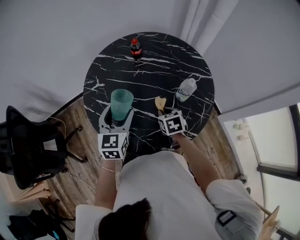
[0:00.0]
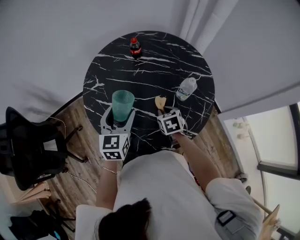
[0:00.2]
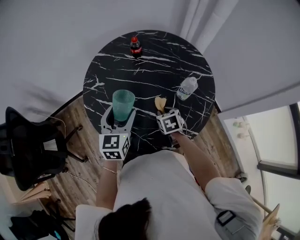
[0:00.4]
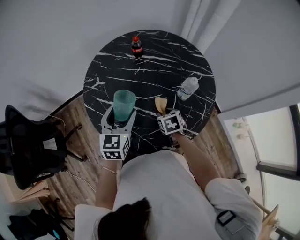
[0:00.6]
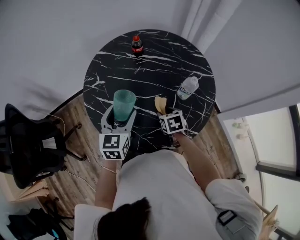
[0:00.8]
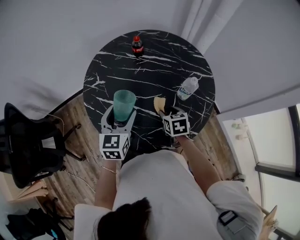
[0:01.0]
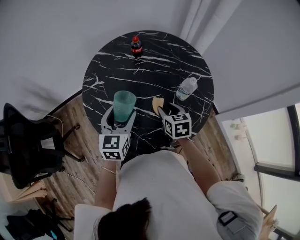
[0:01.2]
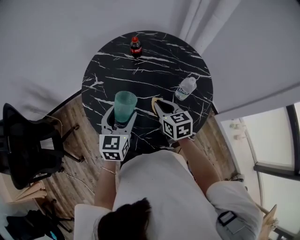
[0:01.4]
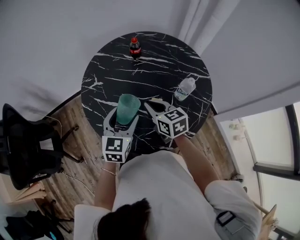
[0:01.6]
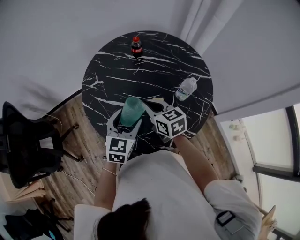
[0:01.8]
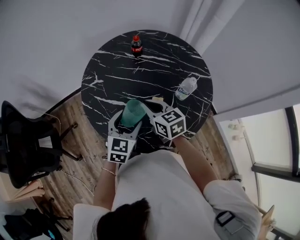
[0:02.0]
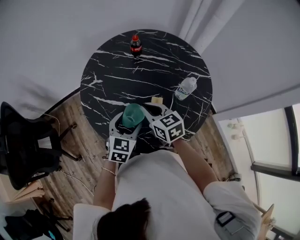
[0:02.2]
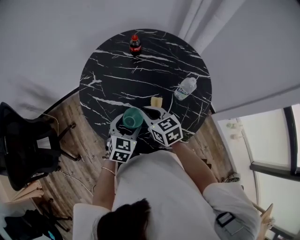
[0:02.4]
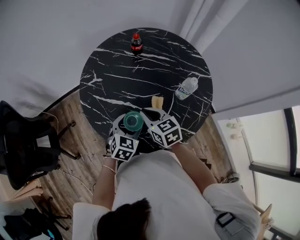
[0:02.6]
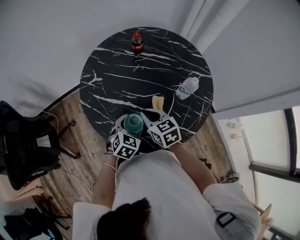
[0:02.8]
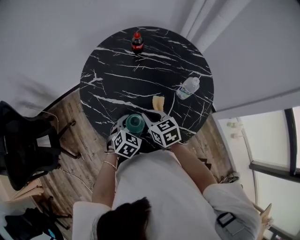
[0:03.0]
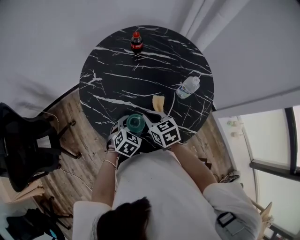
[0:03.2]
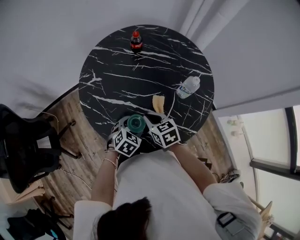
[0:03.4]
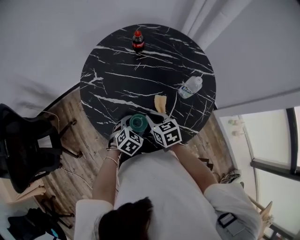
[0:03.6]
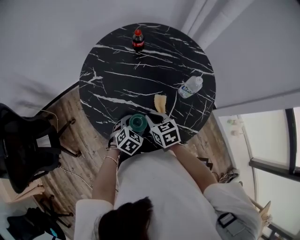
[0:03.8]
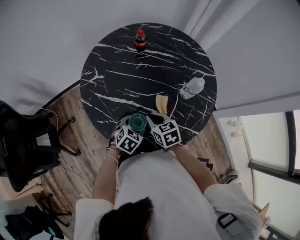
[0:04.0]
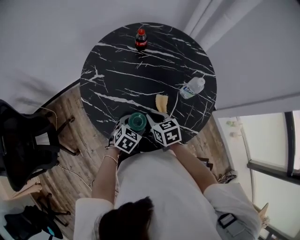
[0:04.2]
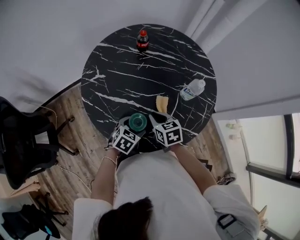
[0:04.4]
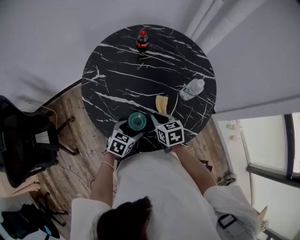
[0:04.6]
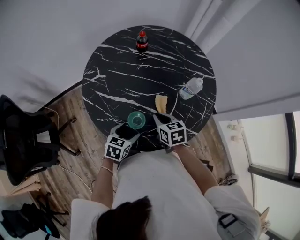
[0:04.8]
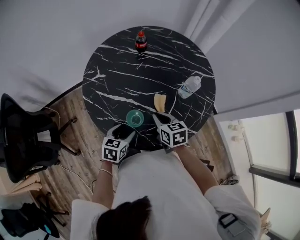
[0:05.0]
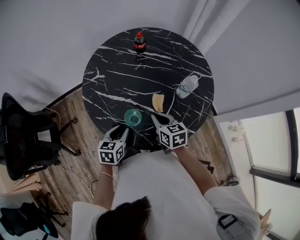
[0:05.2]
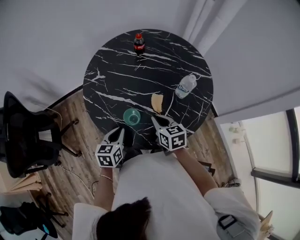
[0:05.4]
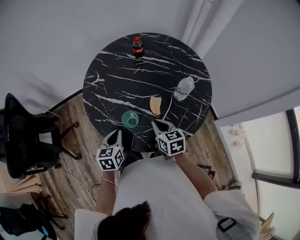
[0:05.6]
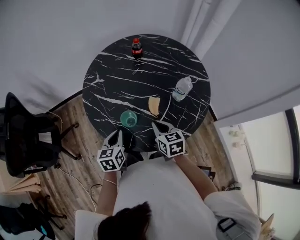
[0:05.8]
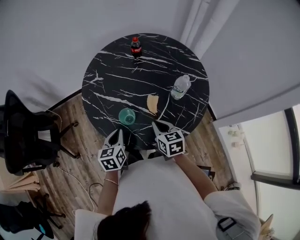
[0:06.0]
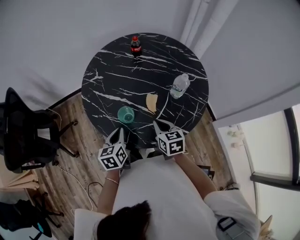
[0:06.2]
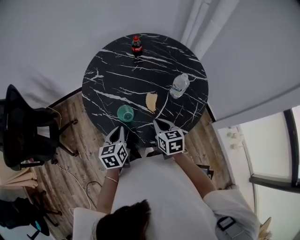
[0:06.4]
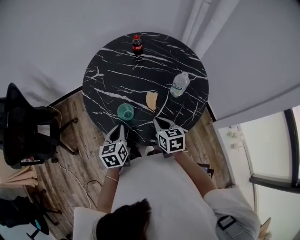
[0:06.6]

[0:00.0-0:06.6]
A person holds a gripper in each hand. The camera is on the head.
0:00.0 to 0:01.6: The right gripper goes roughly 10 cm upward and to the left, changes its angle by about 30 degrees, and opens, then closes once more.
0:01.6 to 0:03.2: The right gripper travels downward by roughly 5 cm. Meanwhile the left gripper moves downward, some 15 cm, and points its fingers about 30 degrees further downward.
0:03.2 to 0:05.0: The left gripper shifts by about 5 cm, and swivels approximately 30 degrees.
0:05.0 to 0:06.6: The right gripper goes about 5 cm backward; the left gripper is displaced upward by some 5 cm, rotates roughly 30 degrees, and closes up.

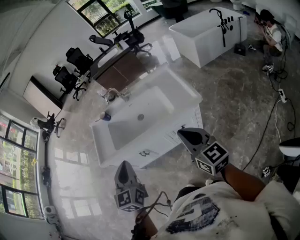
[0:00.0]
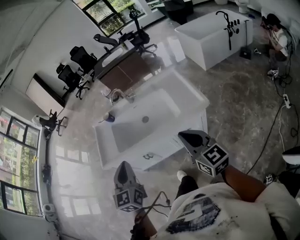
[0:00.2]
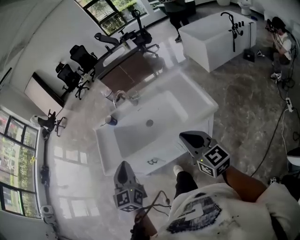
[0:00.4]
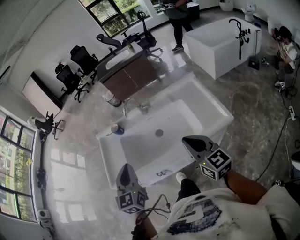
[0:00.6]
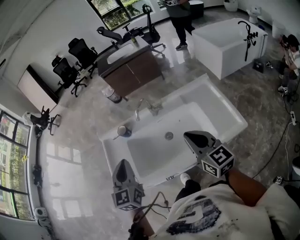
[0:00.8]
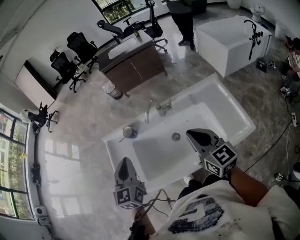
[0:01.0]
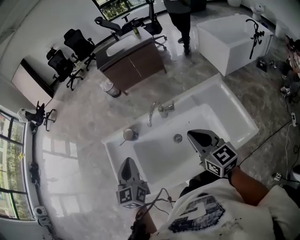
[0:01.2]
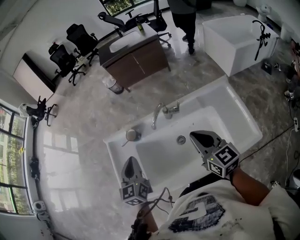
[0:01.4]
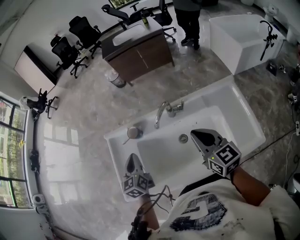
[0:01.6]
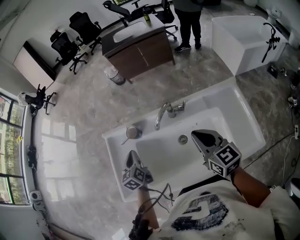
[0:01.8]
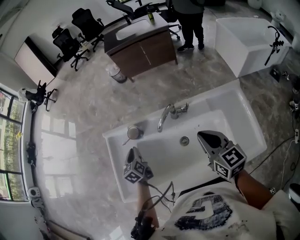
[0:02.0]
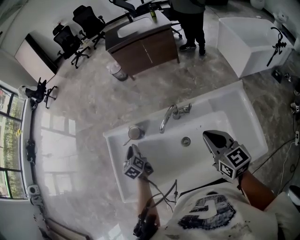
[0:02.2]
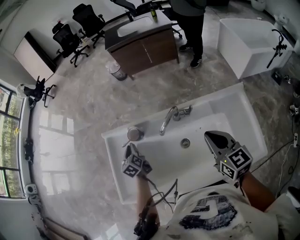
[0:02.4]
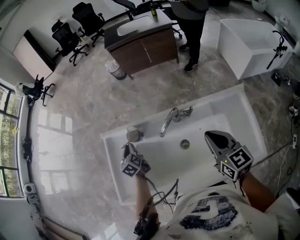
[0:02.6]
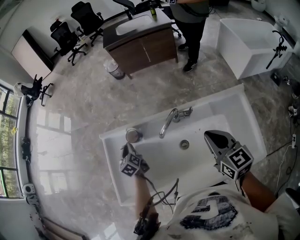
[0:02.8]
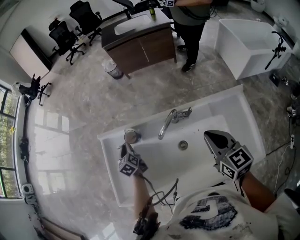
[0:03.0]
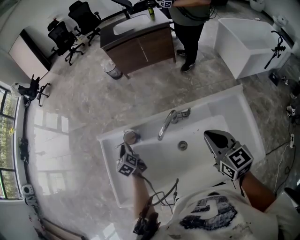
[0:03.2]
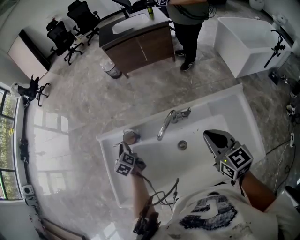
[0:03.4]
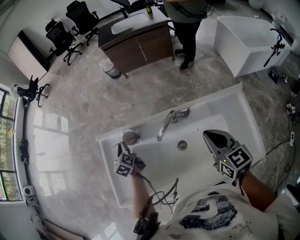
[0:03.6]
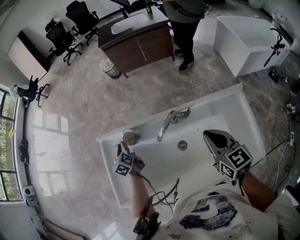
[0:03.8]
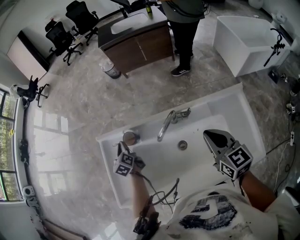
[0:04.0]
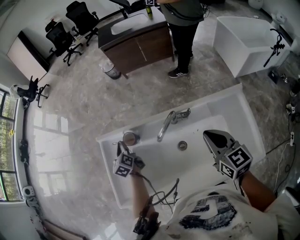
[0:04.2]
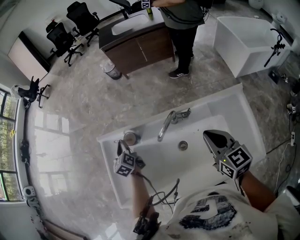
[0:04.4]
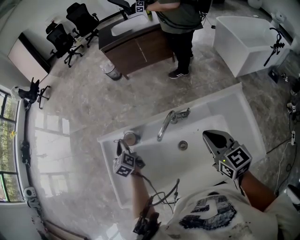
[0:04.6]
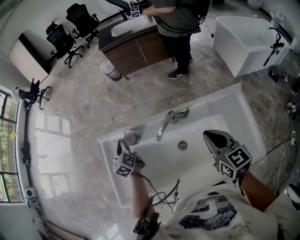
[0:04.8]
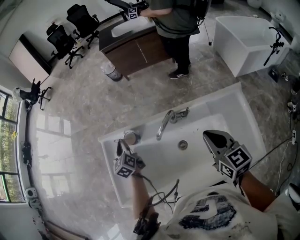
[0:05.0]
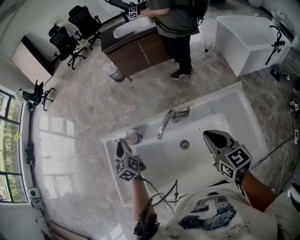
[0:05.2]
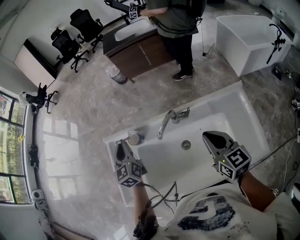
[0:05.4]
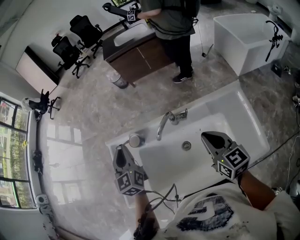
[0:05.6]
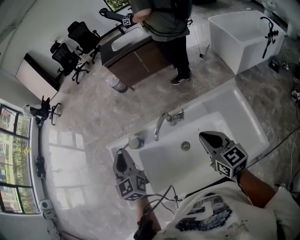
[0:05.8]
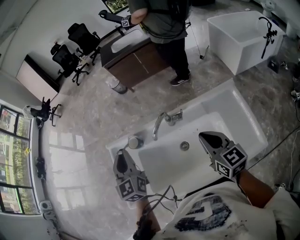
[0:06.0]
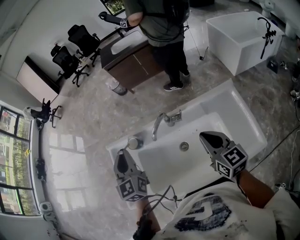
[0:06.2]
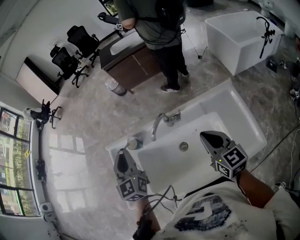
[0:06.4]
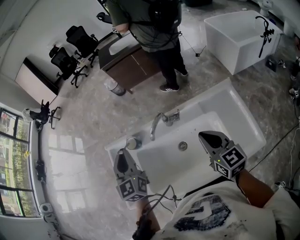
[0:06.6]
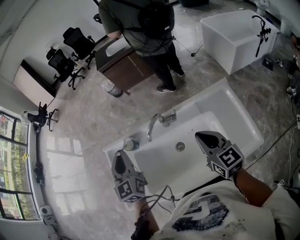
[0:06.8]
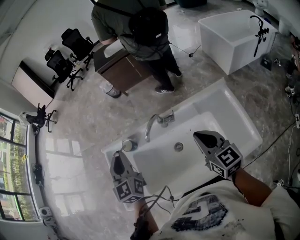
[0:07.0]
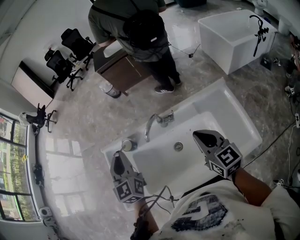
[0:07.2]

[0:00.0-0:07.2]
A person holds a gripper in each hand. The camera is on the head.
0:00.0 to 0:01.4: Both grippers are carried forward, about 50 cm.
0:01.4 to 0:02.8: The right gripper is displaced forward by about 5 cm. Meanwhile the left gripper travels downward and forward by roughly 25 cm, swivels approximately 30 degrees, and opens up.
0:02.8 to 0:04.4: The left gripper ends up some 5 cm from where it was, and closes.
0:04.4 to 0:05.8: The left gripper goes approximately 25 cm upward and backward, and rotates approximately 30 degrees.
0:05.8 to 0:07.2: There are only small adjustments of the grippers.

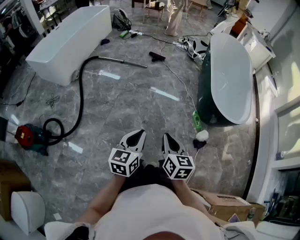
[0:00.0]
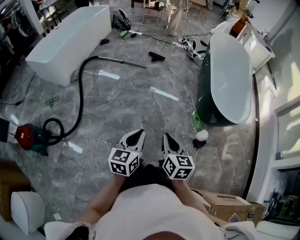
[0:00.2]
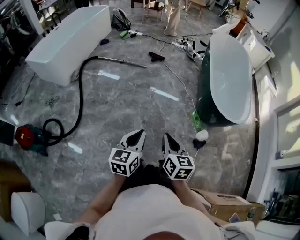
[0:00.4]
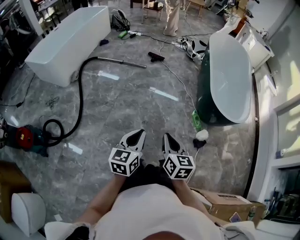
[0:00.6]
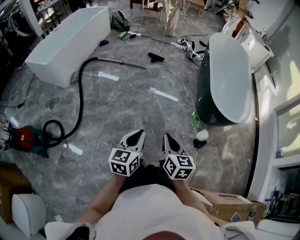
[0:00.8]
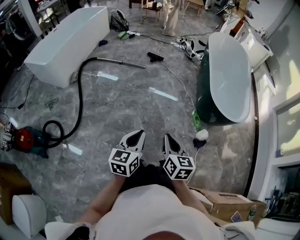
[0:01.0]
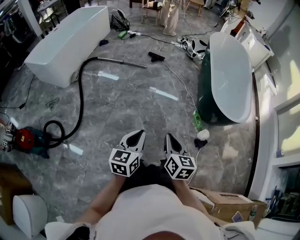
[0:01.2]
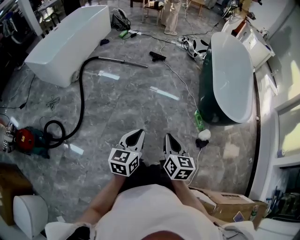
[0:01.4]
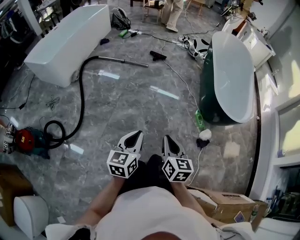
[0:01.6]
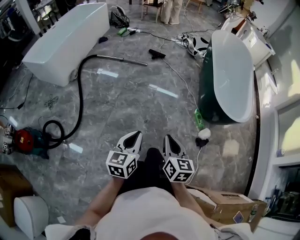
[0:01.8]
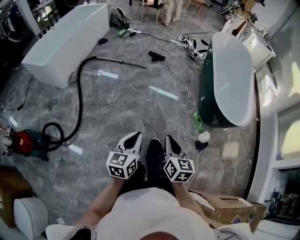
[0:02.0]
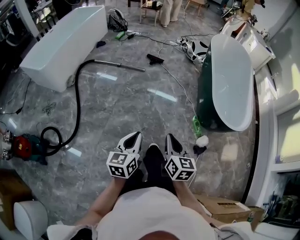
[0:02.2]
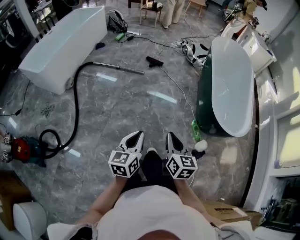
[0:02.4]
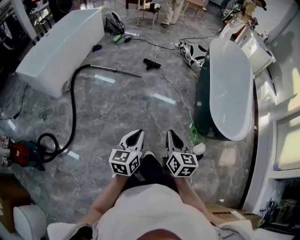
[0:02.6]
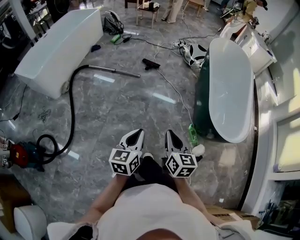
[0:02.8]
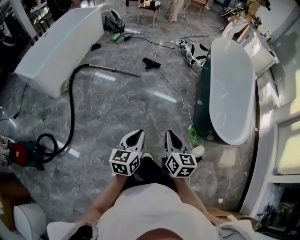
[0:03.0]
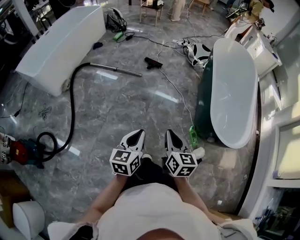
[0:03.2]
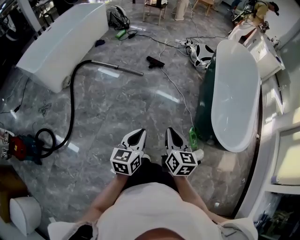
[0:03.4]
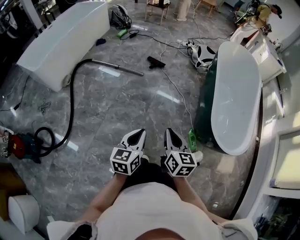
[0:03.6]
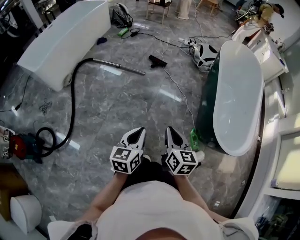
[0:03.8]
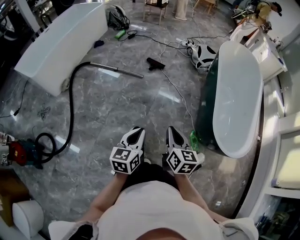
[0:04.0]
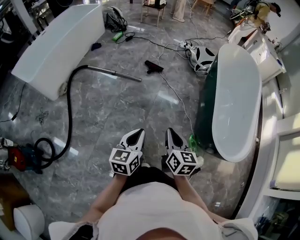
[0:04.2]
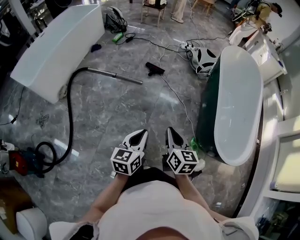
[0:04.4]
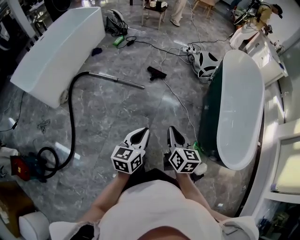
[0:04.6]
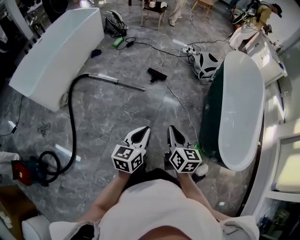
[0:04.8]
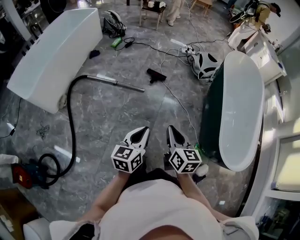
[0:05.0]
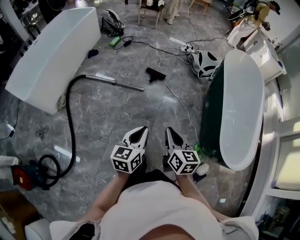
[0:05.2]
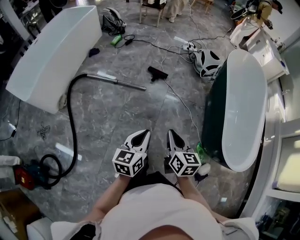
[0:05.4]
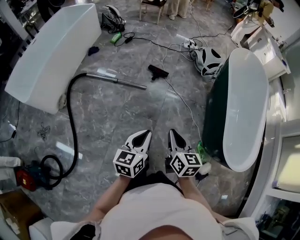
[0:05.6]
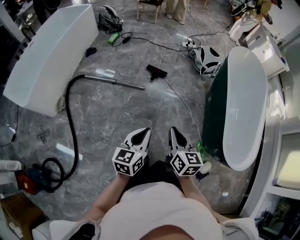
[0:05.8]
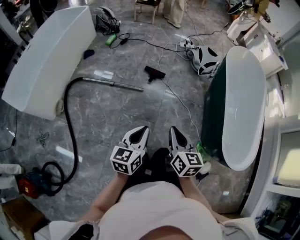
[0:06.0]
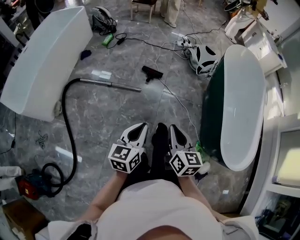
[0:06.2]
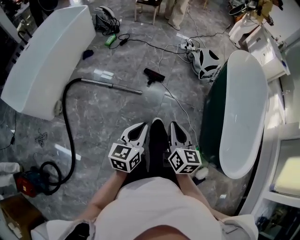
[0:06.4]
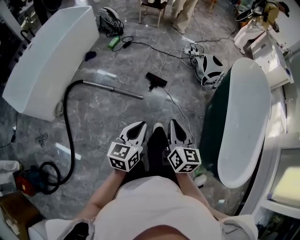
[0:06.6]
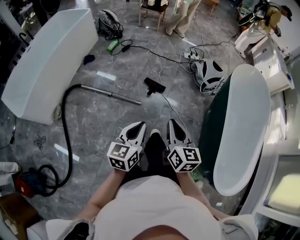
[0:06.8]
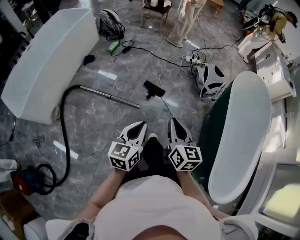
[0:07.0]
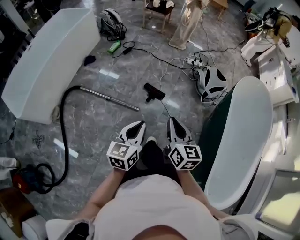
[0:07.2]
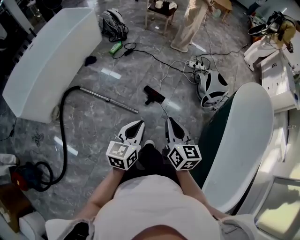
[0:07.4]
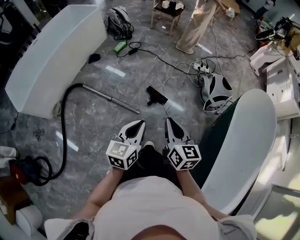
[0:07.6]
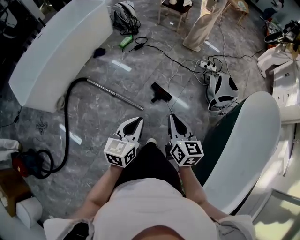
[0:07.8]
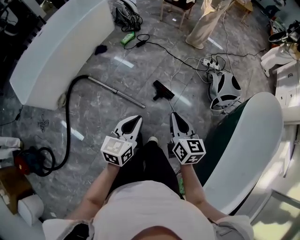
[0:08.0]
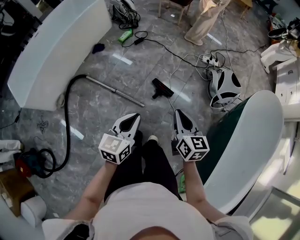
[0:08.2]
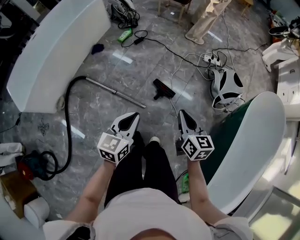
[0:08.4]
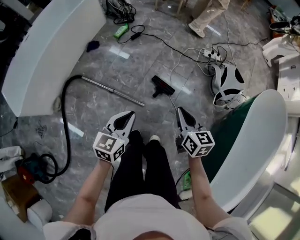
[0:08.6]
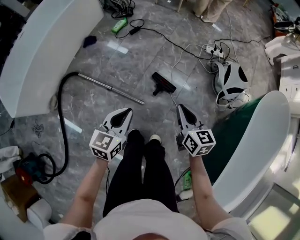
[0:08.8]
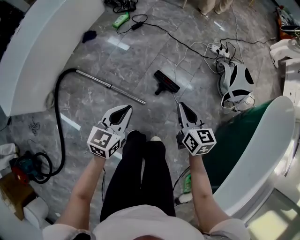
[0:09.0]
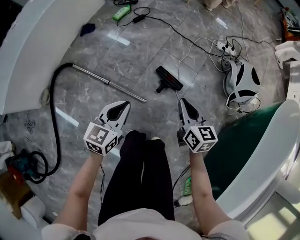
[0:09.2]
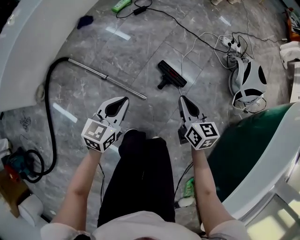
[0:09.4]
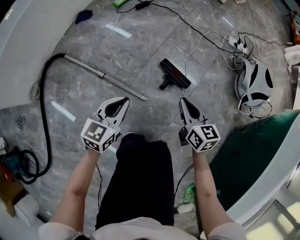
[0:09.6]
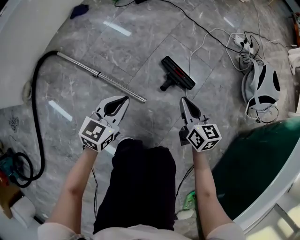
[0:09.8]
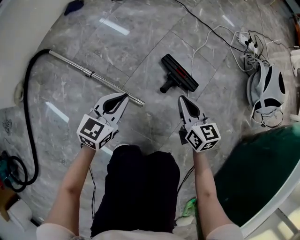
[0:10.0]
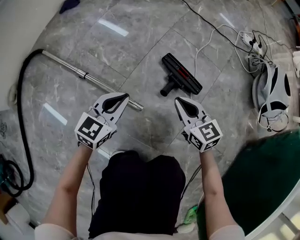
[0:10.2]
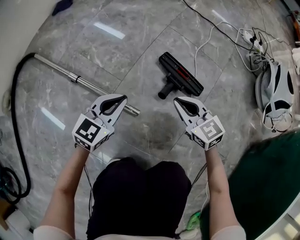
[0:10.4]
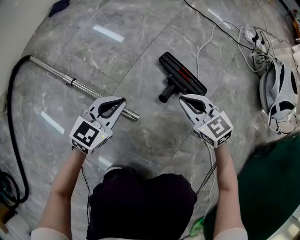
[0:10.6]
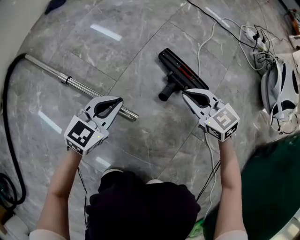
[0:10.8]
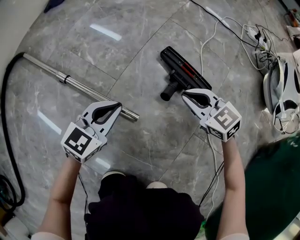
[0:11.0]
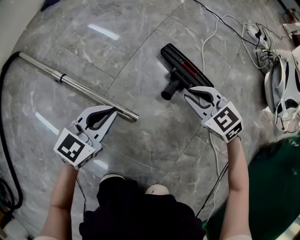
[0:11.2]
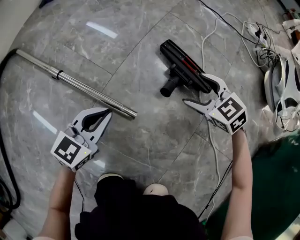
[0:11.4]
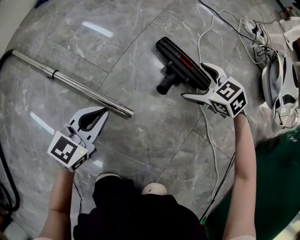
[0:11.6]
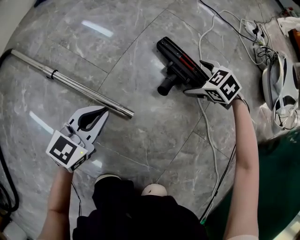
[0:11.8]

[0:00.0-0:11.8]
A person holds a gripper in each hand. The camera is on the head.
0:00.0 to 0:01.4: The grippers make only small movements.
0:01.4 to 0:03.0: The grippers both shift forward by roughly 25 cm.
0:03.0 to 0:04.4: Both grippers travel together forward, some 20 cm.
0:04.4 to 0:06.0: The two grippers go approximately 15 cm forward and to the left.
0:06.0 to 0:07.4: The two grippers go roughly 35 cm forward.
0:07.4 to 0:08.8: The left gripper travels forward, downward and to the left by approximately 20 cm; the right gripper is displaced forward and downward by approximately 25 cm.
0:08.8 to 0:10.4: The two grippers go approximately 50 cm downward. The right gripper turns by approximately 40 degrees.
0:10.4 to 0:11.8: The left gripper goes roughly 10 cm downward, while the right gripper shifts approximately 20 cm downward, to the right and forward, angles its fingers downward, by approximately 40 degrees, and opens up.
